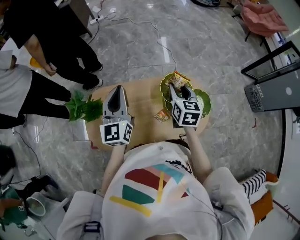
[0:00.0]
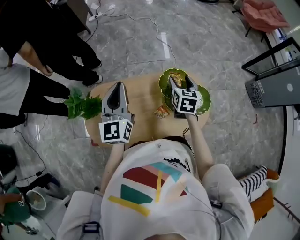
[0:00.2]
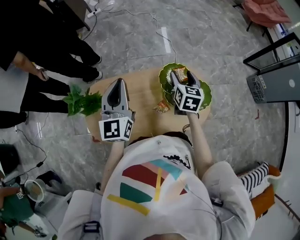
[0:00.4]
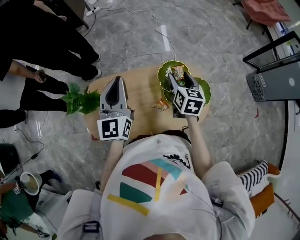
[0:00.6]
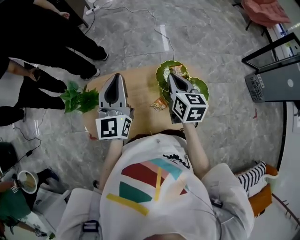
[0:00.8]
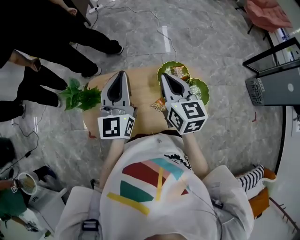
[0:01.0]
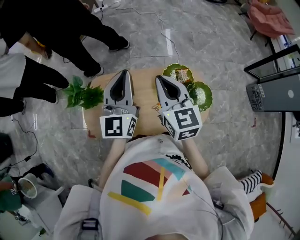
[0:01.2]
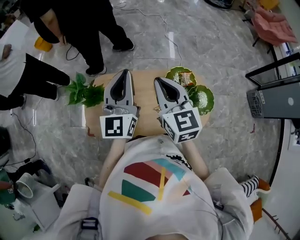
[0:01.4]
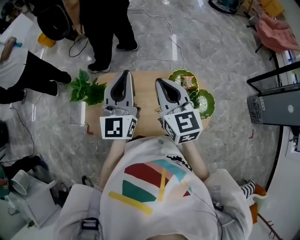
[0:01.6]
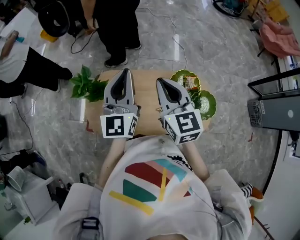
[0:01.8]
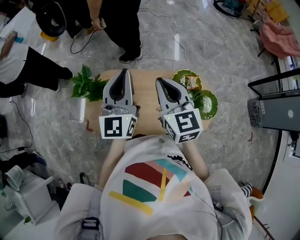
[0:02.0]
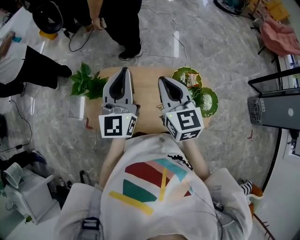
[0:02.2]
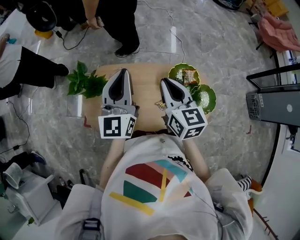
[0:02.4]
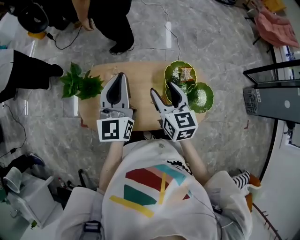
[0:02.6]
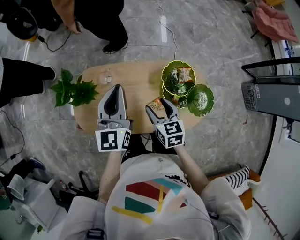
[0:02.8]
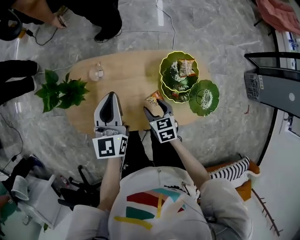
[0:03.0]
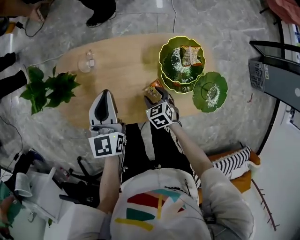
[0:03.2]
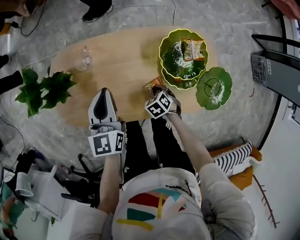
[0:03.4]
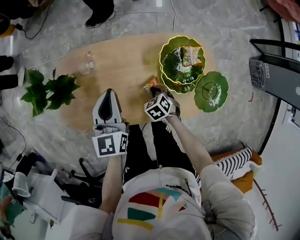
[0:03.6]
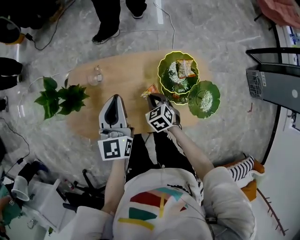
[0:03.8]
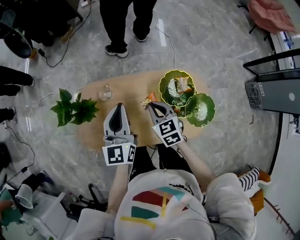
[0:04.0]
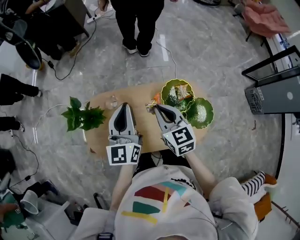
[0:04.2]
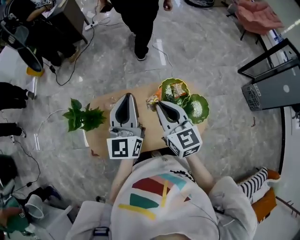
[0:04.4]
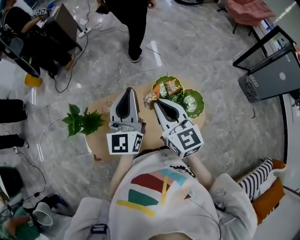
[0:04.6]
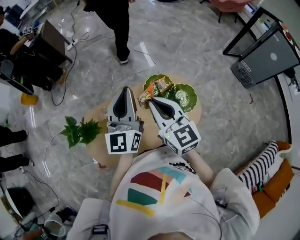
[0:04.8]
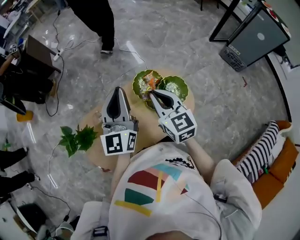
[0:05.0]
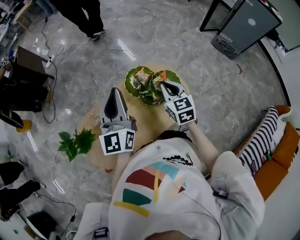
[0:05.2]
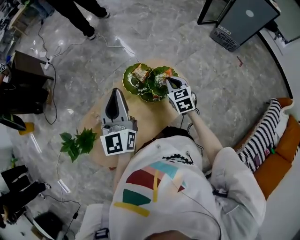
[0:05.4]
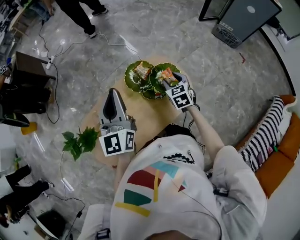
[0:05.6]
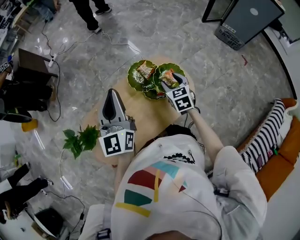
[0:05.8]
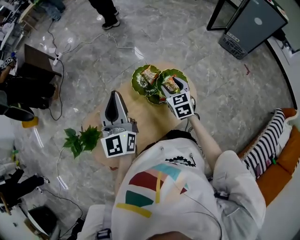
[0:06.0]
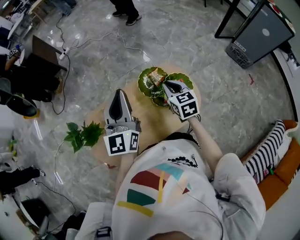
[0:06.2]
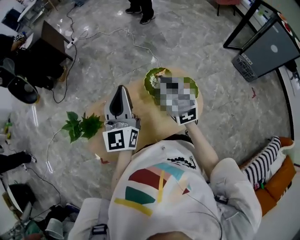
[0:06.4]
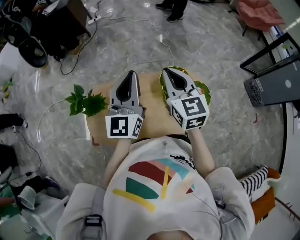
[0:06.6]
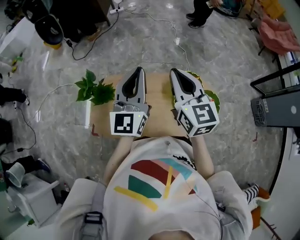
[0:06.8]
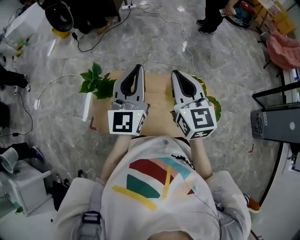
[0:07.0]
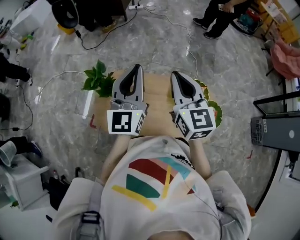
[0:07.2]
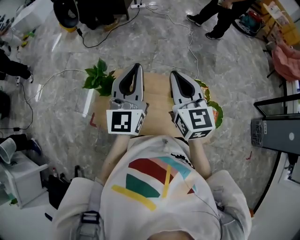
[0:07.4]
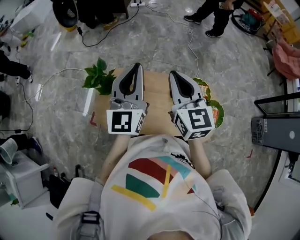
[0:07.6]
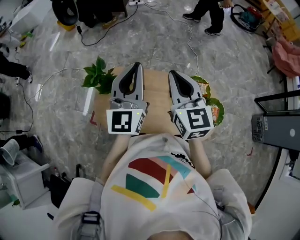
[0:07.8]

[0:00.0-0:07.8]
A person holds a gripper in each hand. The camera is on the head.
0:00.0 to 0:01.6: The right gripper is displaced upward, to the left and backward by some 20 cm, changes its angle by some 30 degrees, and closes its fingers; the left gripper moves upward, some 5 cm.
0:01.6 to 0:03.2: The right gripper moves downward, approximately 50 cm, tilts its fingers some 50 degrees downward, and opens up; the left gripper shifts roughly 25 cm downward, and turns by approximately 30 degrees.
0:03.2 to 0:04.6: The right gripper moves upward, approximately 50 cm, tips its fingers upward by approximately 50 degrees, and closes. Meanwhile the left gripper moves upward, some 30 cm, and turns by roughly 30 degrees.
0:04.6 to 0:06.2: The right gripper moves downward and to the right, some 20 cm, rotates approximately 30 degrees, and opens, then closes once more.
0:06.2 to 0:07.8: The right gripper moves roughly 30 cm, and turns by approximately 40 degrees, while the left gripper ends up approximately 15 cm from where it was, and changes its angle by roughly 30 degrees.

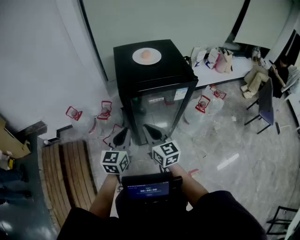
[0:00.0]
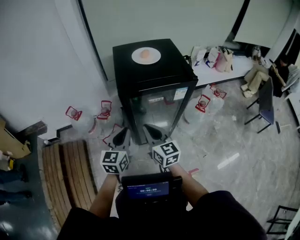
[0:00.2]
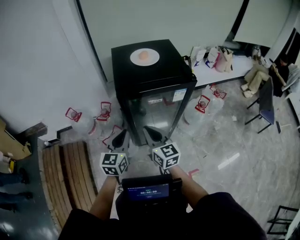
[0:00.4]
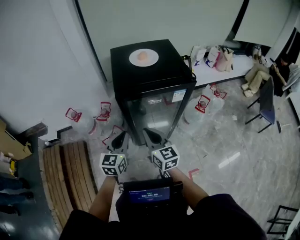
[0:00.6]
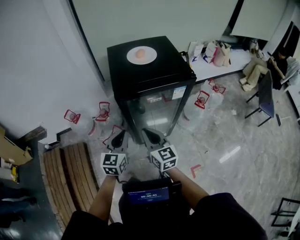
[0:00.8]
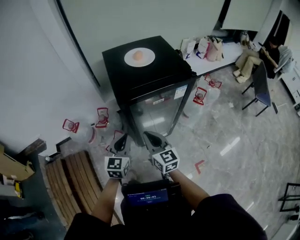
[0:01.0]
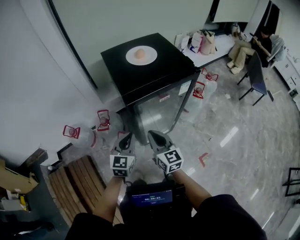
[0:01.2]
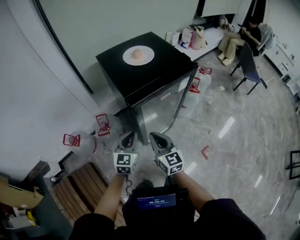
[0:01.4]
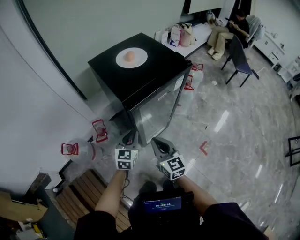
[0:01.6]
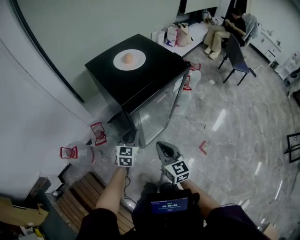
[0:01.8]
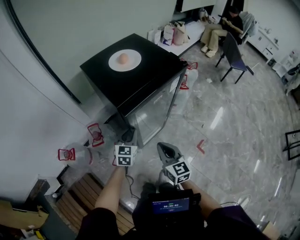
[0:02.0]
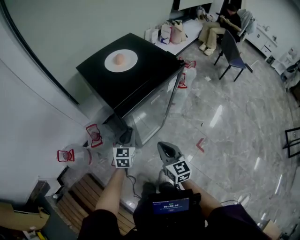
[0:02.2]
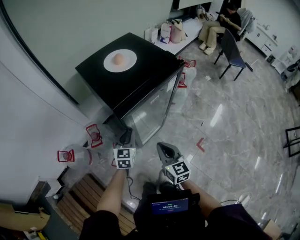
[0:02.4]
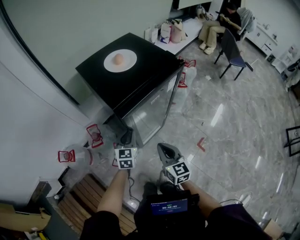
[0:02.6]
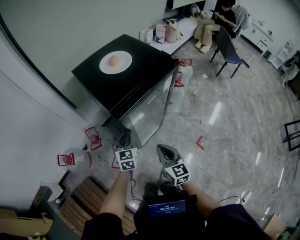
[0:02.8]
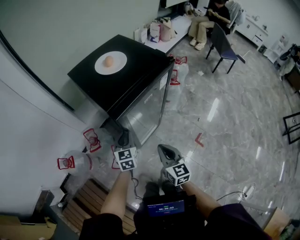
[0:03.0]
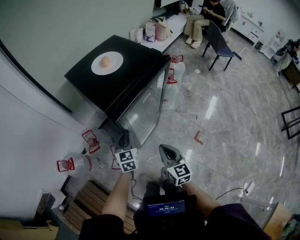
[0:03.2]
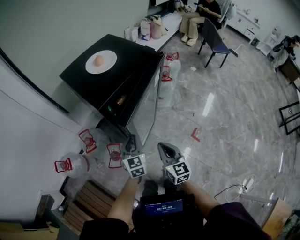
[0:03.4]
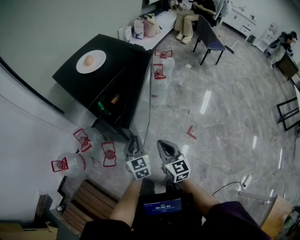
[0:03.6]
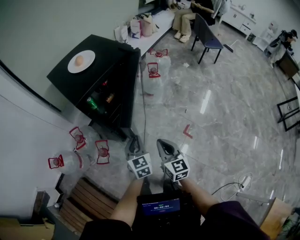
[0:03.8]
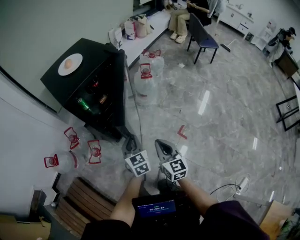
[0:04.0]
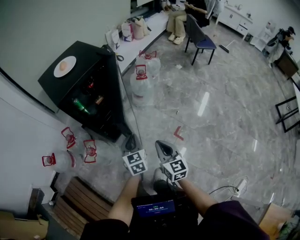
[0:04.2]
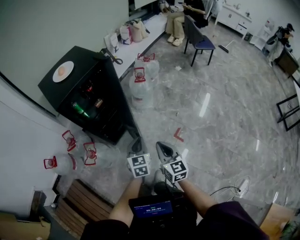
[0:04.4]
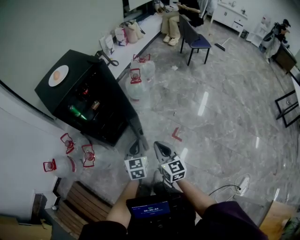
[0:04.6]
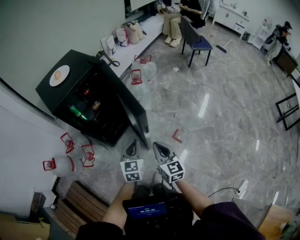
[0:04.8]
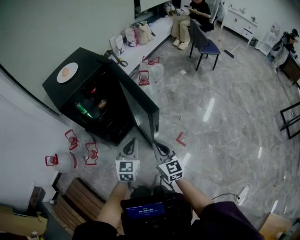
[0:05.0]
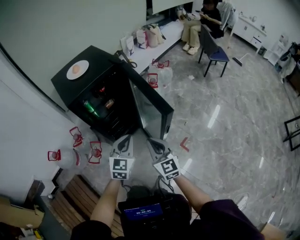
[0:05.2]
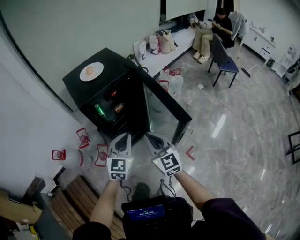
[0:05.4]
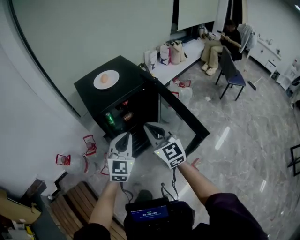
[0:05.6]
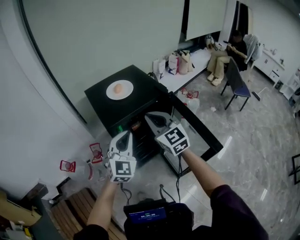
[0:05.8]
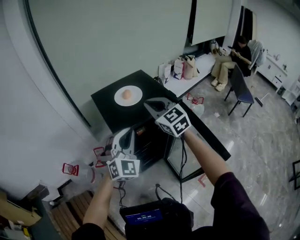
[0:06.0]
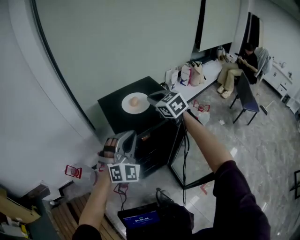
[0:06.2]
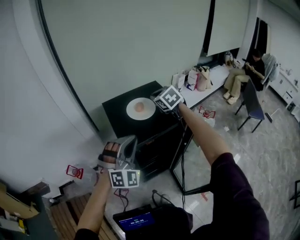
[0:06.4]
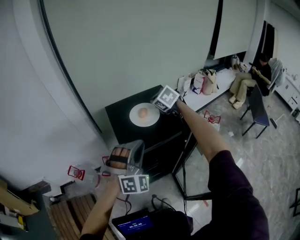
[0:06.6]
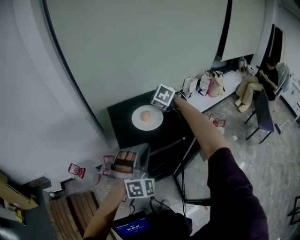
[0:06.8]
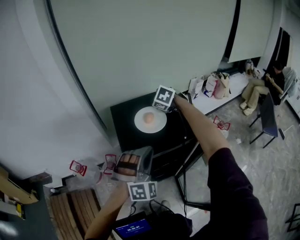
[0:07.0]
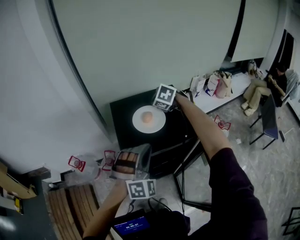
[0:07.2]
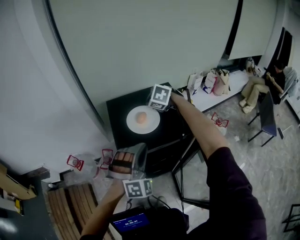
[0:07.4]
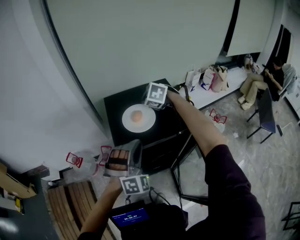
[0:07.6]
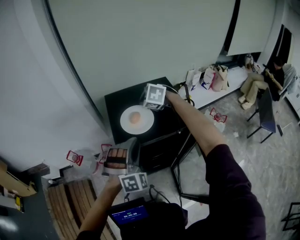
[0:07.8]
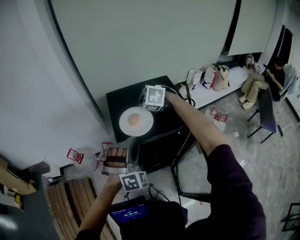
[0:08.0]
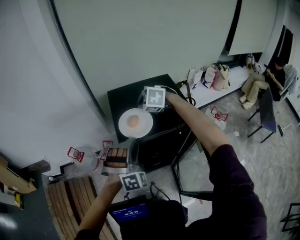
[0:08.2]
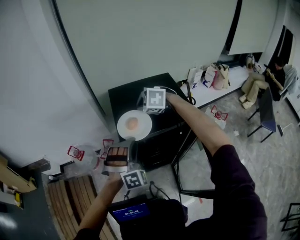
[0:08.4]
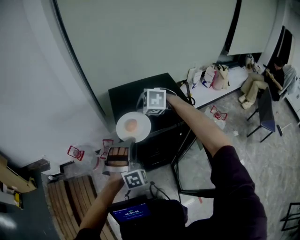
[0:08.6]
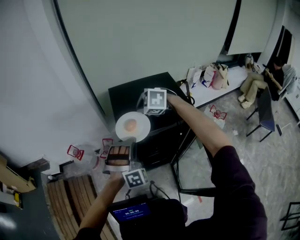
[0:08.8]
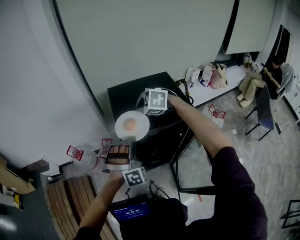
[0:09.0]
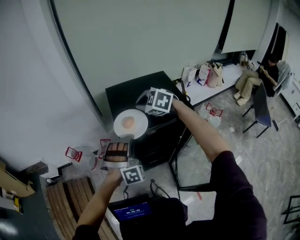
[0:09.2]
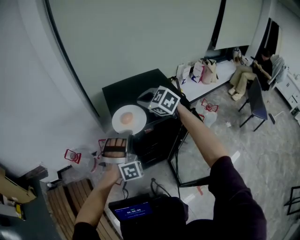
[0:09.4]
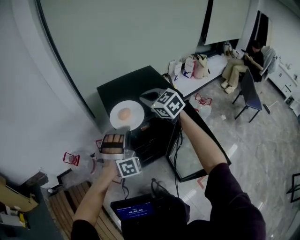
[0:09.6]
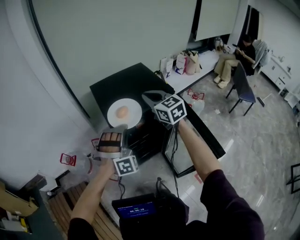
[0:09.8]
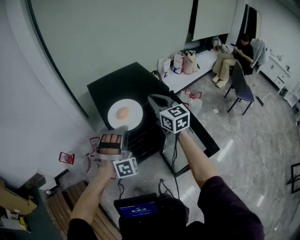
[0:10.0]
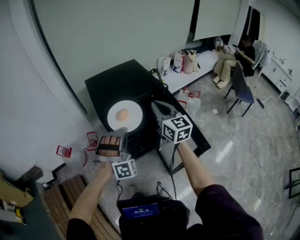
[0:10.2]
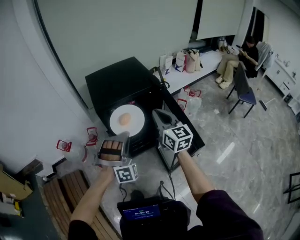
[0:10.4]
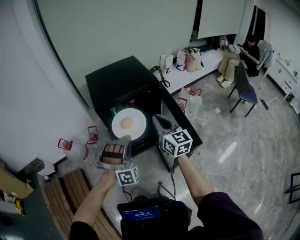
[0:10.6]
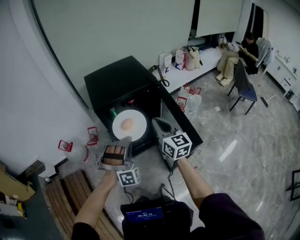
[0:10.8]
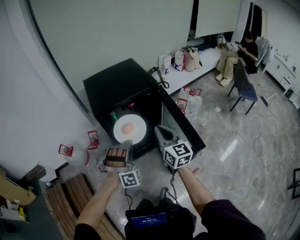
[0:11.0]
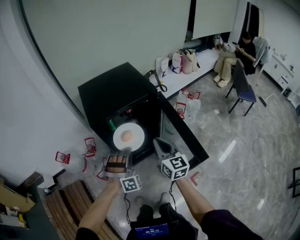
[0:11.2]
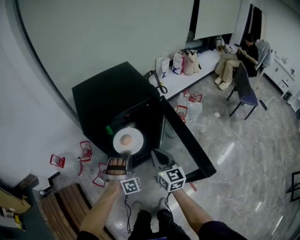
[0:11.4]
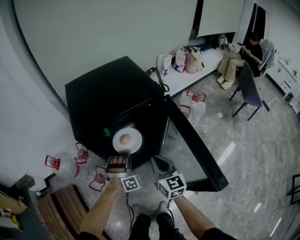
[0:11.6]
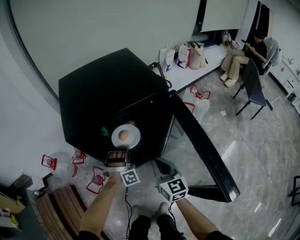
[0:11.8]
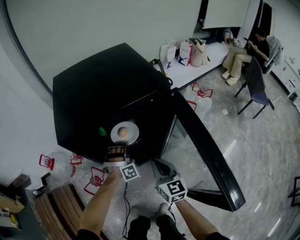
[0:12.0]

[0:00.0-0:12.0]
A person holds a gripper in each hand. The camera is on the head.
0:00.0 to 0:01.6: The right gripper shifts by approximately 10 cm, and rotates roughly 30 degrees; the left gripper moves downward, approximately 10 cm, and rotates some 30 degrees.
0:01.6 to 0:03.0: The right gripper shifts some 5 cm to the right.
0:03.0 to 0:04.4: Both grippers travel together to the right and backward, about 35 cm.
0:04.4 to 0:06.0: The left gripper is displaced upward, to the left and forward by approximately 40 cm, and rotates around the line of its fingers by approximately 50 degrees, clockwise from behind, while the right gripper travels forward, to the left and upward by roughly 50 cm, and swivels about 50 degrees.
0:06.0 to 0:07.6: The right gripper goes about 25 cm forward and downward, and angles its fingers downward, by about 40 degrees. Meanwhile the left gripper shifts about 5 cm forward, and turns by approximately 30 degrees.
0:07.6 to 0:09.0: The right gripper travels to the left and backward by approximately 10 cm; the left gripper is displaced to the left by some 5 cm.
0:09.0 to 0:10.4: The left gripper changes place by approximately 20 cm. The right gripper shifts by some 35 cm, and angles its fingers upward, by about 60 degrees.
0:10.4 to 0:12.0: The right gripper goes approximately 30 cm downward, while the left gripper travels downward and forward by some 40 cm.

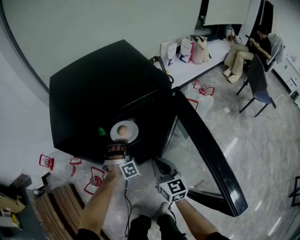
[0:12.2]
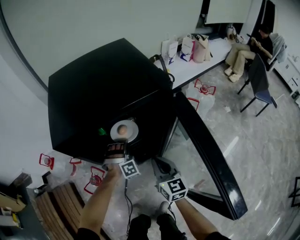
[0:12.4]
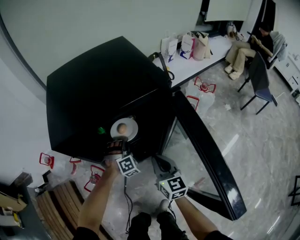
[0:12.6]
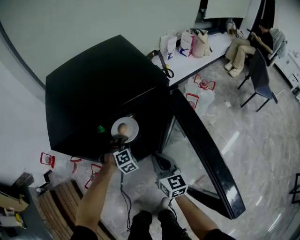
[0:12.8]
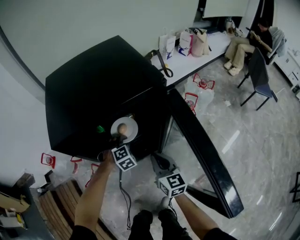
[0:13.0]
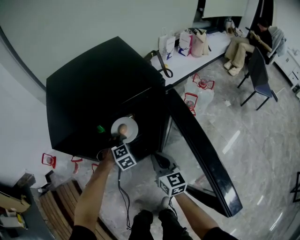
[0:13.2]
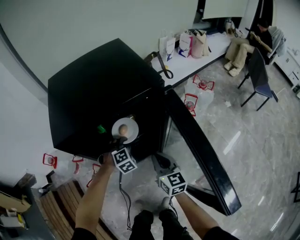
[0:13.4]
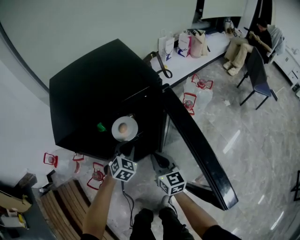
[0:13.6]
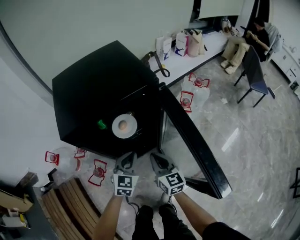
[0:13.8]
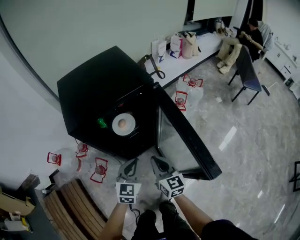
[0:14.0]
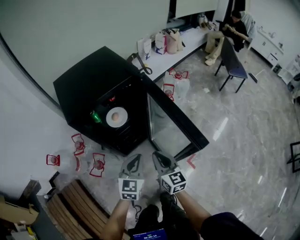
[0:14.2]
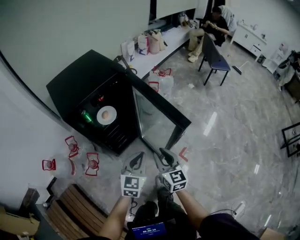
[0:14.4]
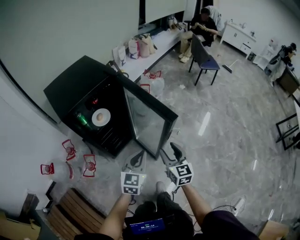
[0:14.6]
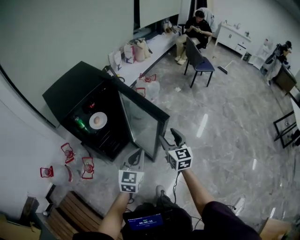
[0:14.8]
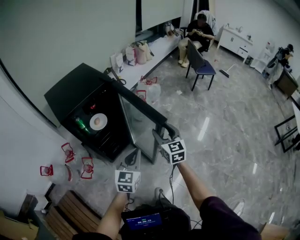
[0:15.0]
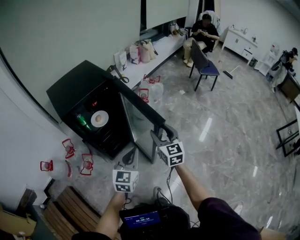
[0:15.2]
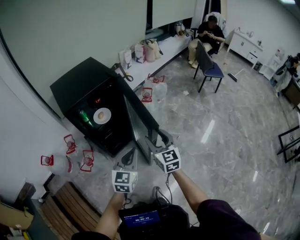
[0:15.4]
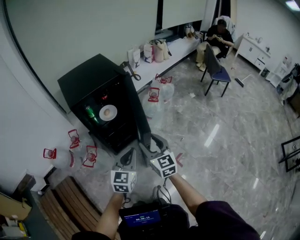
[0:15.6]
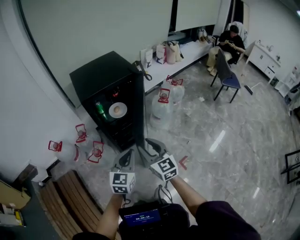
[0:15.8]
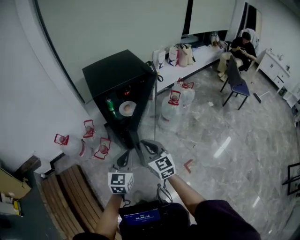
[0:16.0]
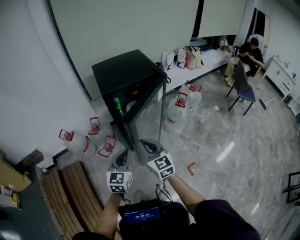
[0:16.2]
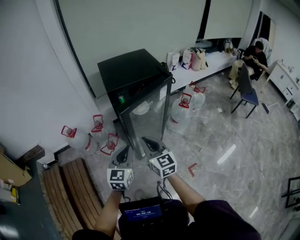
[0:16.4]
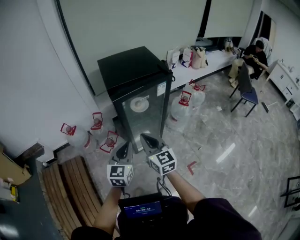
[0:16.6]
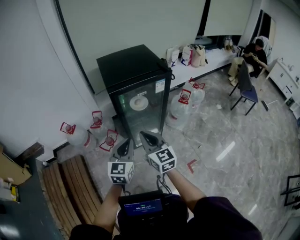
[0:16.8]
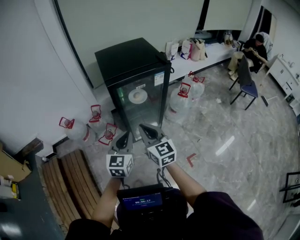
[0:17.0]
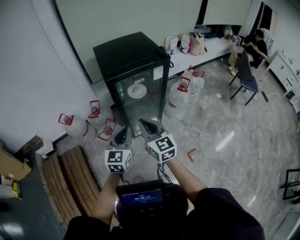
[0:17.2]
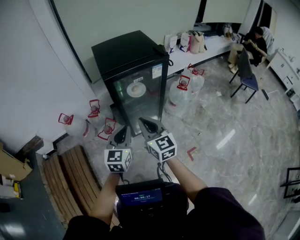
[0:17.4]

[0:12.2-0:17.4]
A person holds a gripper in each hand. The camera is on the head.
0:12.2 to 0:14.0: The right gripper shifts some 10 cm backward and upward. The left gripper is displaced backward and upward by roughly 25 cm, rotates around the line of its fingers by approximately 80 degrees, counterclockwise from behind, and opens, then closes again.
0:14.0 to 0:15.6: The right gripper shifts by about 25 cm, and opens. Meanwhile the left gripper changes place by approximately 25 cm.
0:15.6 to 0:17.4: The two grippers go about 15 cm to the left. The right gripper closes.
